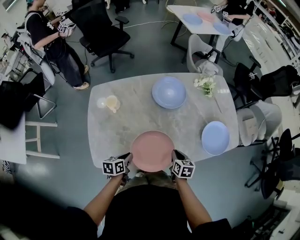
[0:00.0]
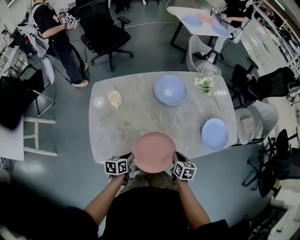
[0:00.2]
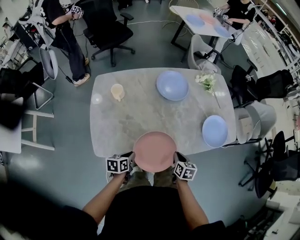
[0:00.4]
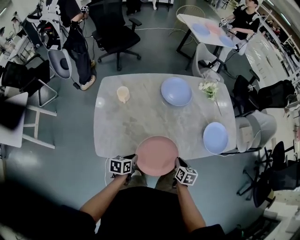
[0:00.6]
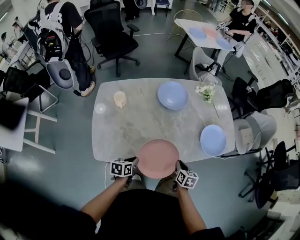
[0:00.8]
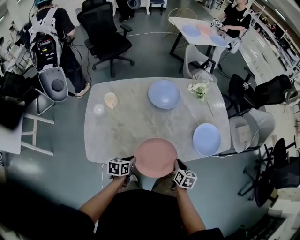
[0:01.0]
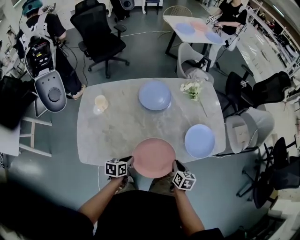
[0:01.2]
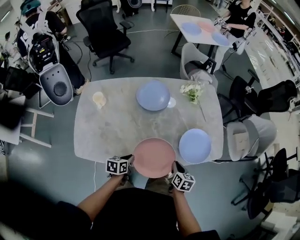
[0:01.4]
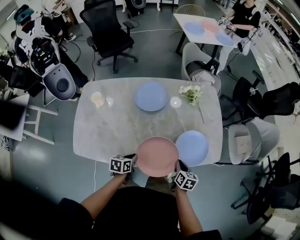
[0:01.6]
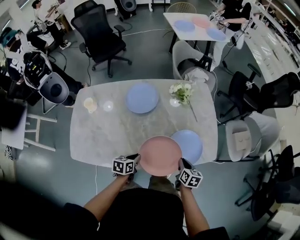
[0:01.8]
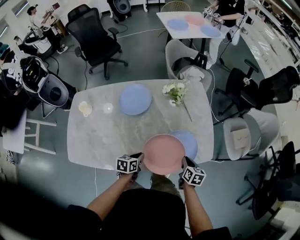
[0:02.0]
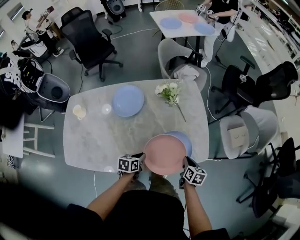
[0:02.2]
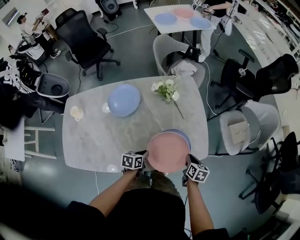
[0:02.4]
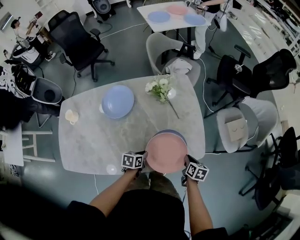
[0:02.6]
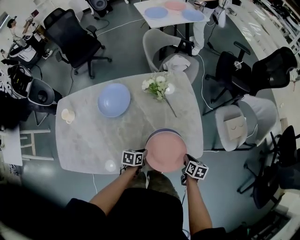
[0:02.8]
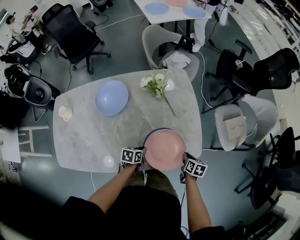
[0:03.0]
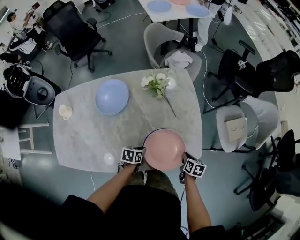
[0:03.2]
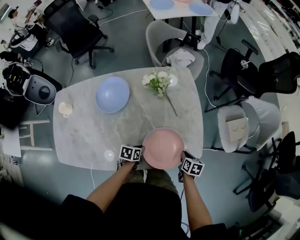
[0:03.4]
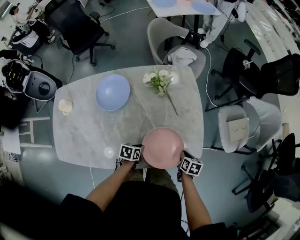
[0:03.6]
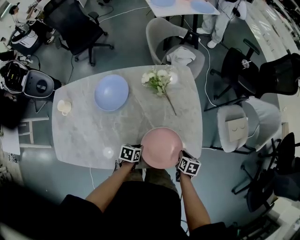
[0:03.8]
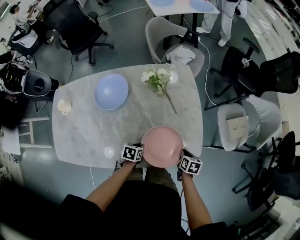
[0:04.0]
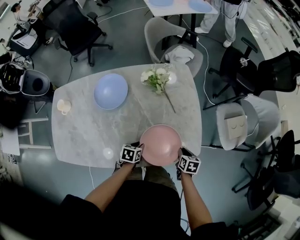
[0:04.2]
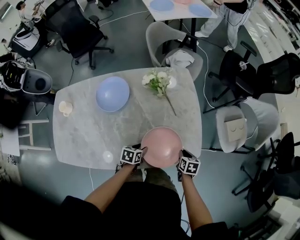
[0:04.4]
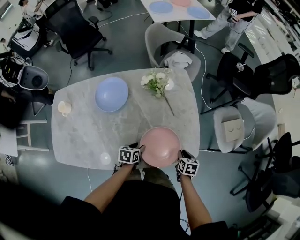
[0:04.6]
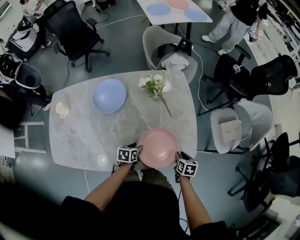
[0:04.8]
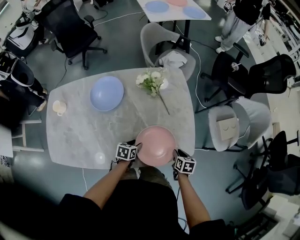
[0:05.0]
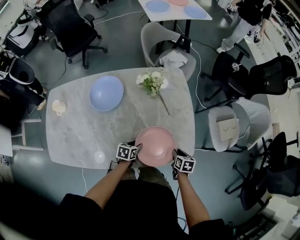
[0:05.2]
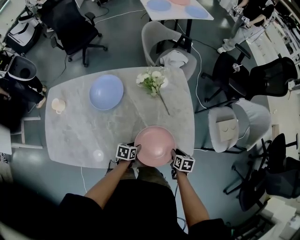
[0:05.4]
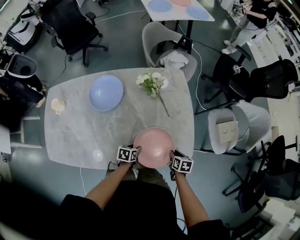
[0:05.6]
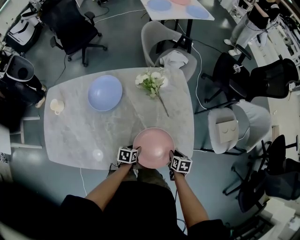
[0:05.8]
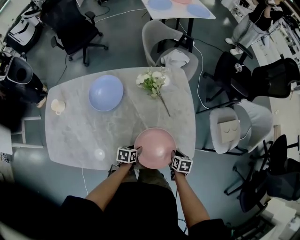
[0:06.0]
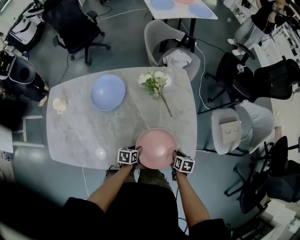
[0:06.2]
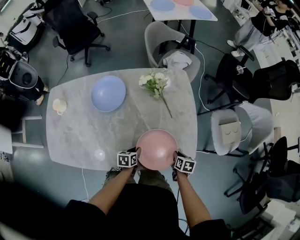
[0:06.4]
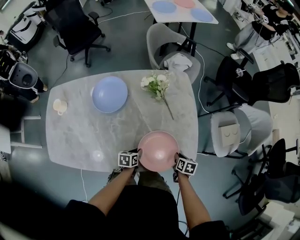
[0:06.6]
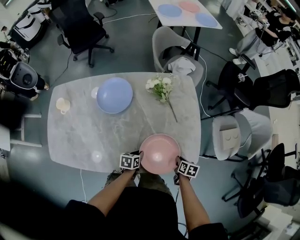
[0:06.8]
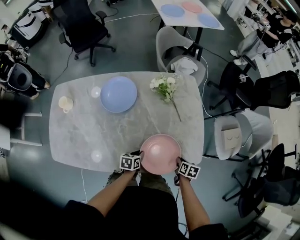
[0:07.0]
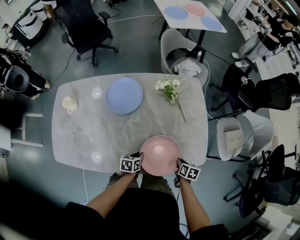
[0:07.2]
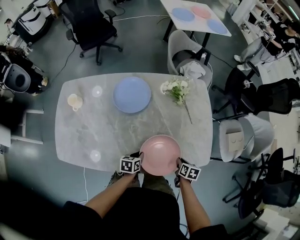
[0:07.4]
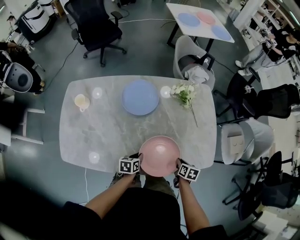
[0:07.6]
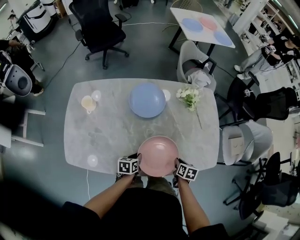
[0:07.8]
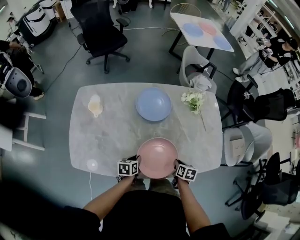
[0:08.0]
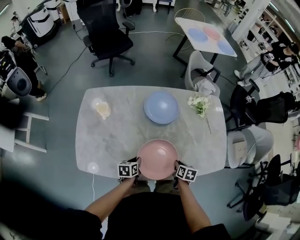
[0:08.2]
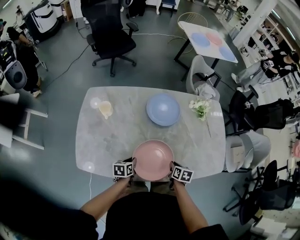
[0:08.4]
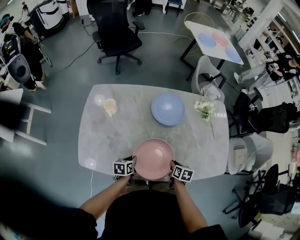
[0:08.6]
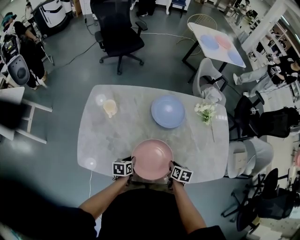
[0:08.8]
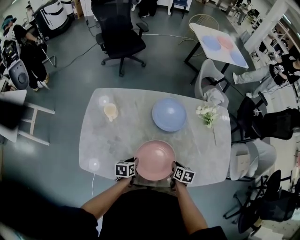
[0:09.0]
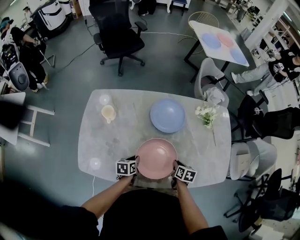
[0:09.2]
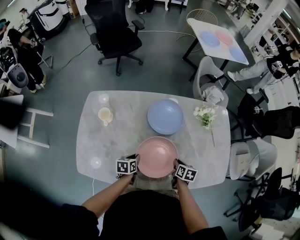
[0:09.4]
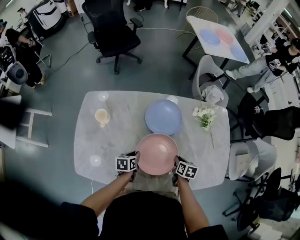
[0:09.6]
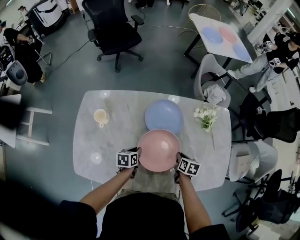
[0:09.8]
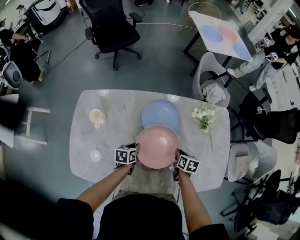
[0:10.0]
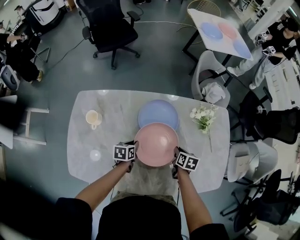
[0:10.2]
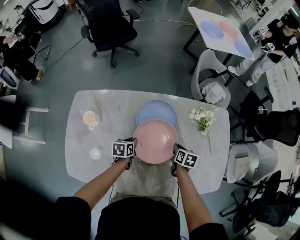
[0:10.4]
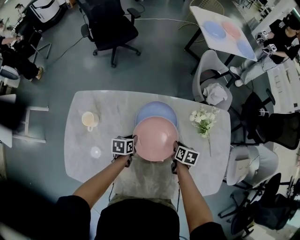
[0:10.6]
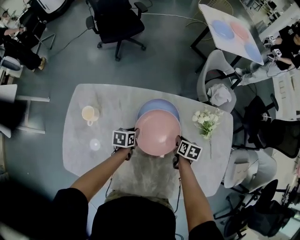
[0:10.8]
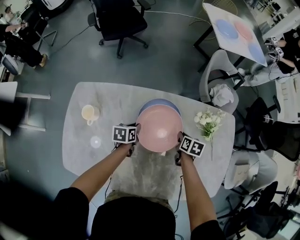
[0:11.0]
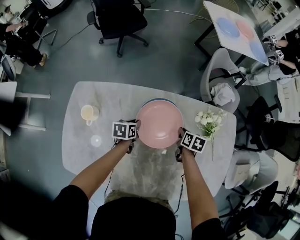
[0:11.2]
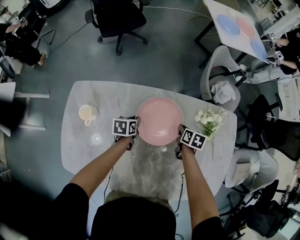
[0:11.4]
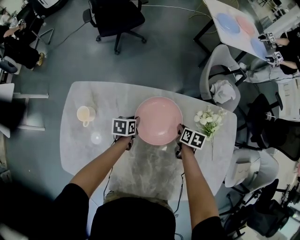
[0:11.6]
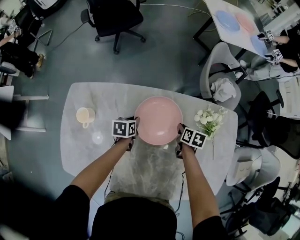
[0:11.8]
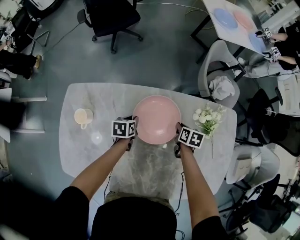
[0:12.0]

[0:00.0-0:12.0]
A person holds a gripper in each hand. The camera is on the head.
0:00.0 to 0:01.6: Both grippers move to the right, about 25 cm.
0:01.6 to 0:03.0: The right gripper travels to the right, forward and downward by approximately 25 cm, while the left gripper moves to the right and forward, approximately 30 cm.
0:03.0 to 0:04.4: The left gripper opens its fingers.
0:04.4 to 0:06.0: The grippers move only a little.
0:06.0 to 0:07.6: The grippers both shift to the left by some 15 cm.
0:07.6 to 0:09.0: Both grippers move to the left, about 20 cm.
0:09.0 to 0:10.4: The two grippers go approximately 20 cm forward.
0:10.4 to 0:12.0: The grippers both shift forward by some 15 cm.

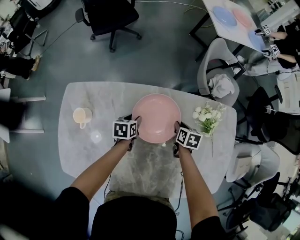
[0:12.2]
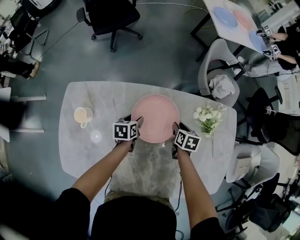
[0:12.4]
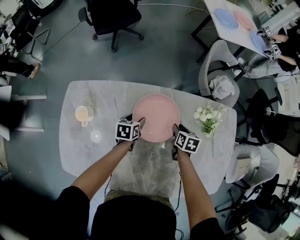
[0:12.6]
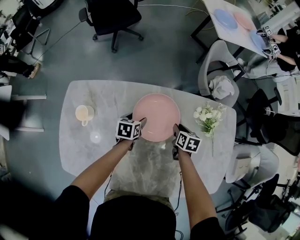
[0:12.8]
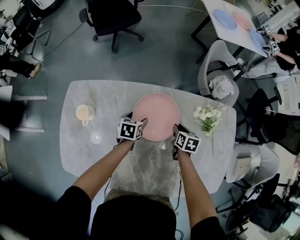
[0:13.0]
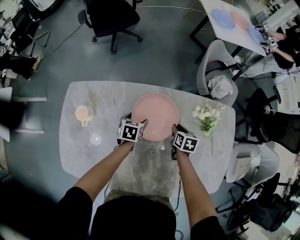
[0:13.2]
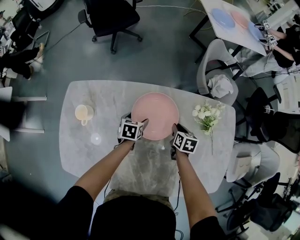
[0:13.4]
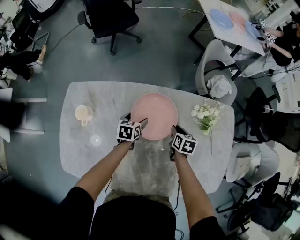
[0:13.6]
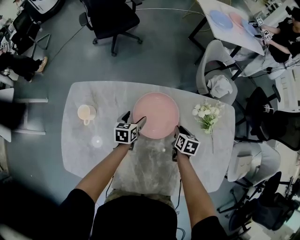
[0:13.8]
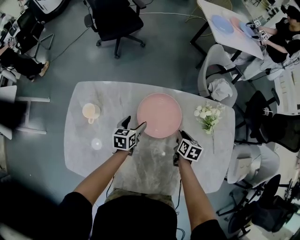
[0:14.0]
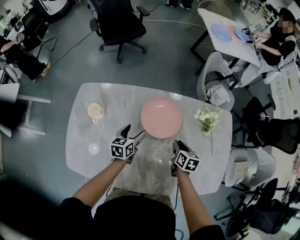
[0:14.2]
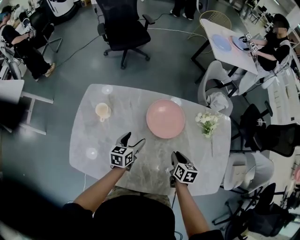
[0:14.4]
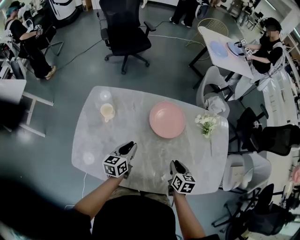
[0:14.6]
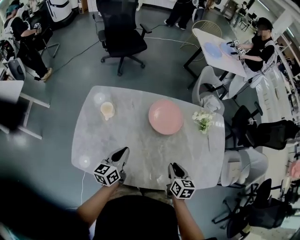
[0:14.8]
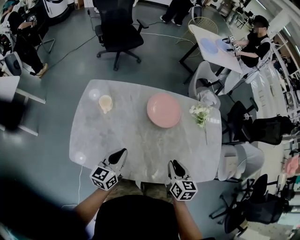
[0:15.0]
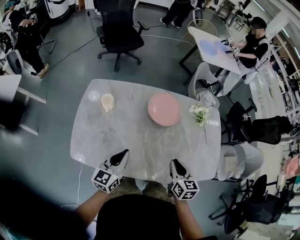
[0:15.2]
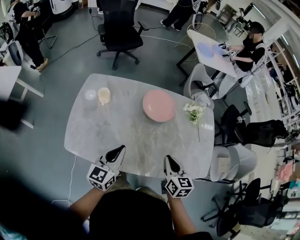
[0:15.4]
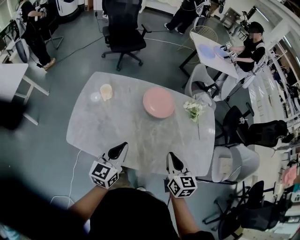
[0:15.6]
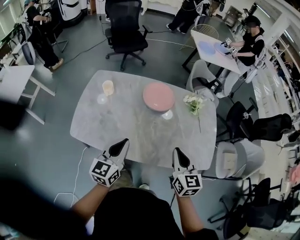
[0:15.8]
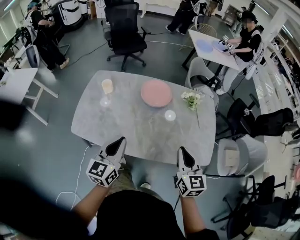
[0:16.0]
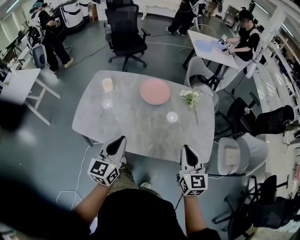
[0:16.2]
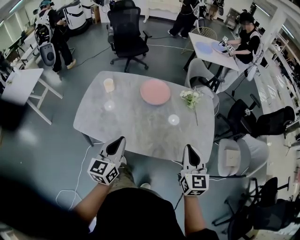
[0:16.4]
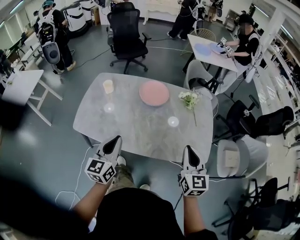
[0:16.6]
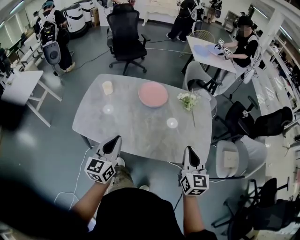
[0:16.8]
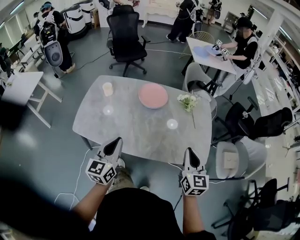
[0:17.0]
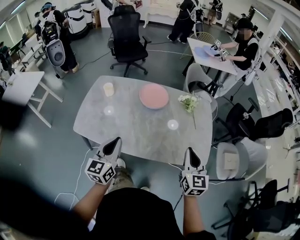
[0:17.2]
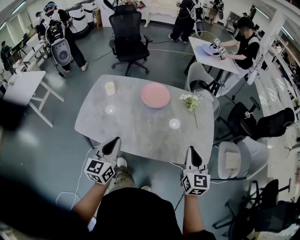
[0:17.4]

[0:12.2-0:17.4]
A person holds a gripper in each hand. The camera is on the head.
0:12.2 to 0:14.0: The two grippers go about 5 cm backward. The left gripper opens its fingers.
0:14.0 to 0:15.6: The grippers both shift backward and upward by approximately 40 cm. The right gripper swivels some 30 degrees, while the left gripper changes its angle by some 30 degrees, and closes up.
0:15.6 to 0:17.4: The left gripper shifts about 15 cm backward, to the right and upward, while the right gripper goes roughly 25 cm to the right, backward and upward.

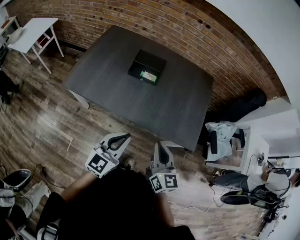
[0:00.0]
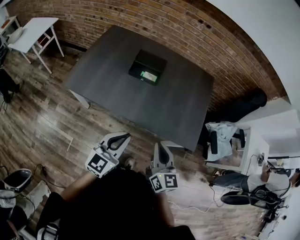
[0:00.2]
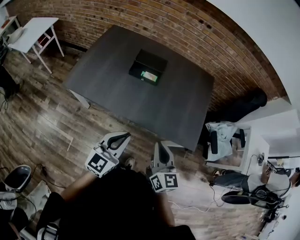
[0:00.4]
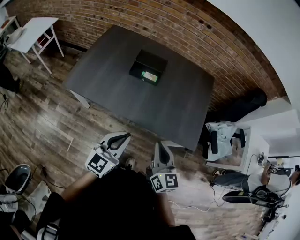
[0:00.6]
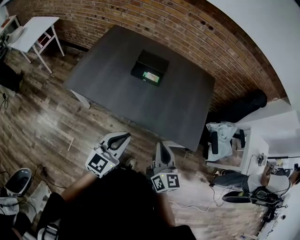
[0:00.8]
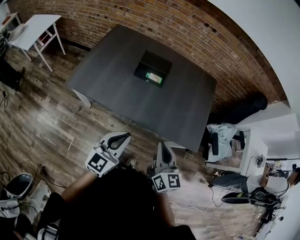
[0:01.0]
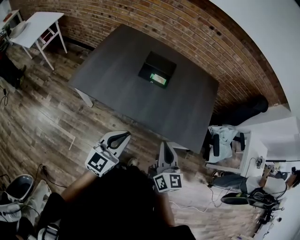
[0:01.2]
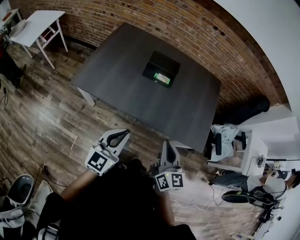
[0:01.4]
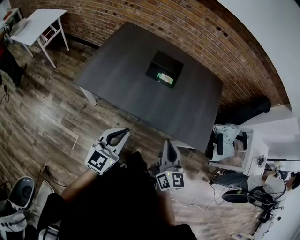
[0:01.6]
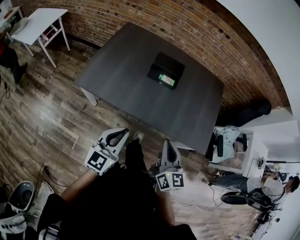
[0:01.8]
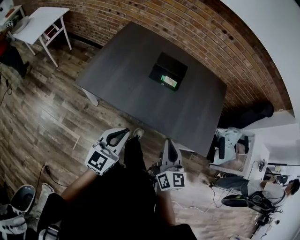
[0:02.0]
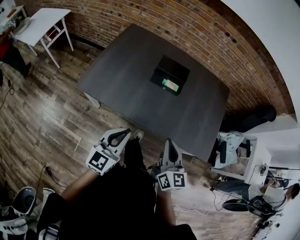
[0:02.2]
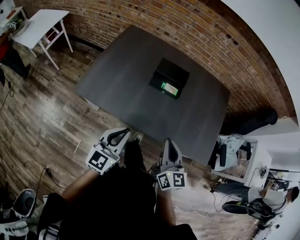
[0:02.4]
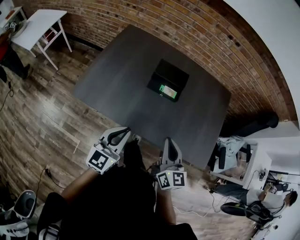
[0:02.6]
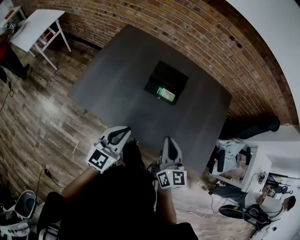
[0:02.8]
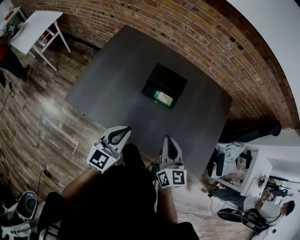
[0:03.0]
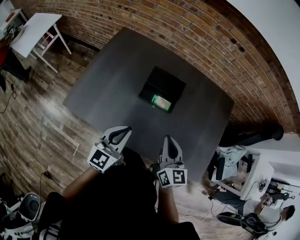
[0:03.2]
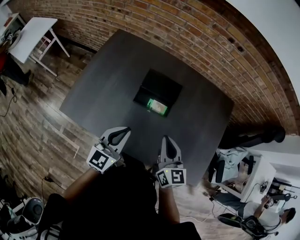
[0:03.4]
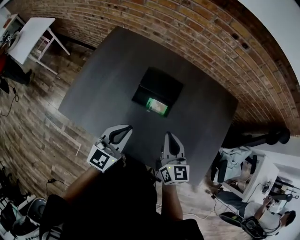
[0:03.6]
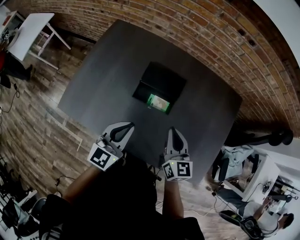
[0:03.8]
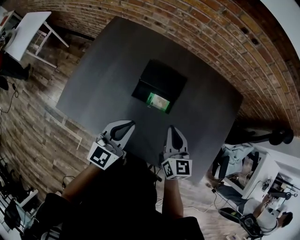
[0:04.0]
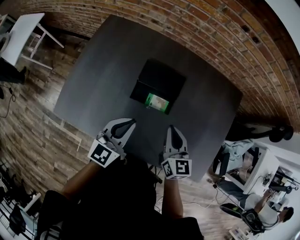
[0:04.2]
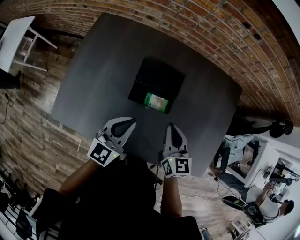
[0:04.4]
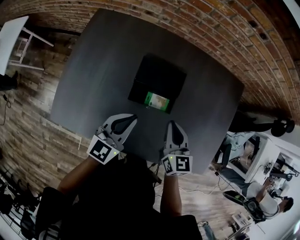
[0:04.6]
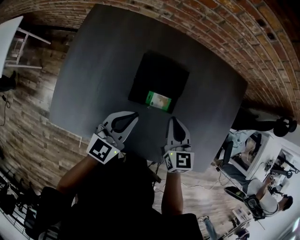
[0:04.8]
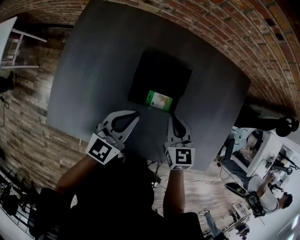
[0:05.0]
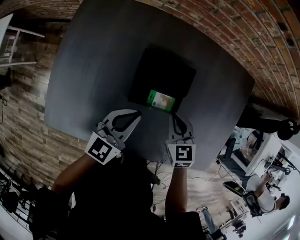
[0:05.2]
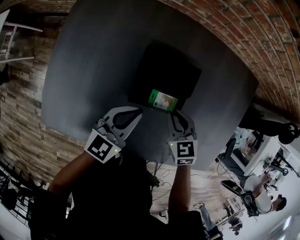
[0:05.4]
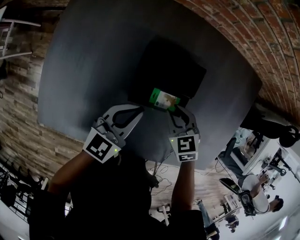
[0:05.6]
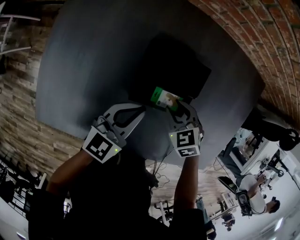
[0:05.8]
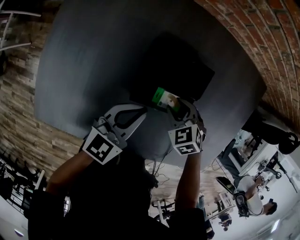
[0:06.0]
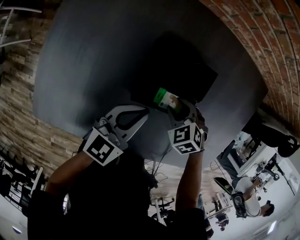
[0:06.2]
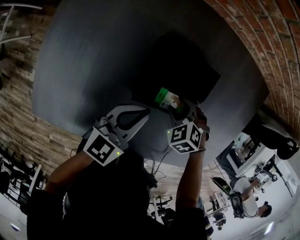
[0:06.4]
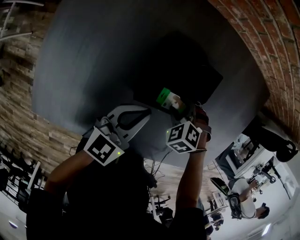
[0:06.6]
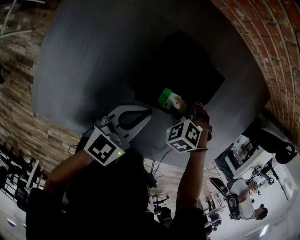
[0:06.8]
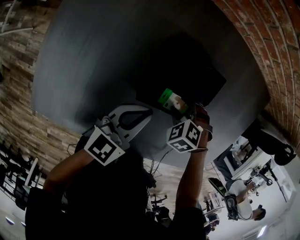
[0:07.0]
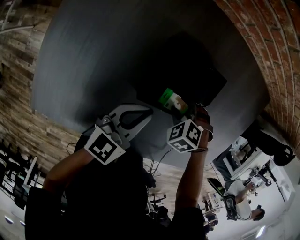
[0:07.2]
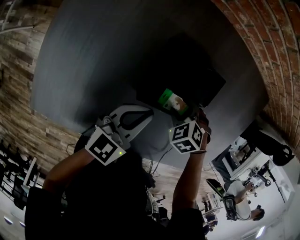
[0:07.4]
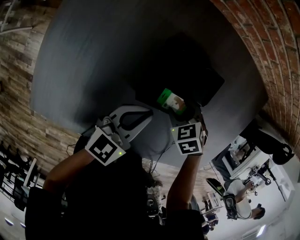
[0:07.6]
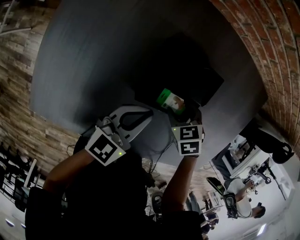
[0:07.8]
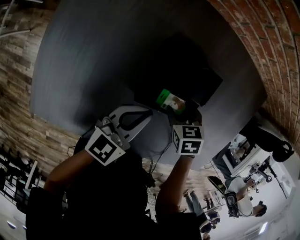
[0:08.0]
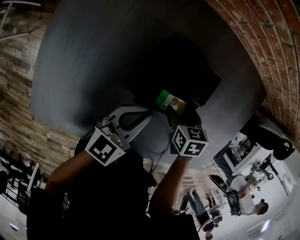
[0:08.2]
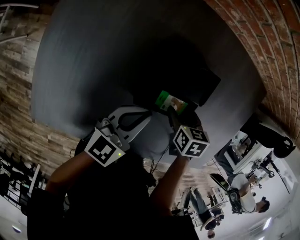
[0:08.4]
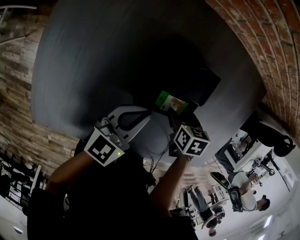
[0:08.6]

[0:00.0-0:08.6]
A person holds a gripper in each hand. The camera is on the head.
0:00.0 to 0:01.4: The two grippers go about 10 cm to the left.
0:01.4 to 0:02.8: Both grippers move forward, some 20 cm.
0:02.8 to 0:04.4: The grippers both shift forward by about 25 cm.
0:04.4 to 0:05.8: Both grippers move downward and forward, approximately 20 cm. The right gripper points its fingers some 40 degrees further downward.
0:05.8 to 0:07.2: The right gripper is displaced downward by roughly 5 cm, and rotates approximately 40 degrees.
0:07.2 to 0:08.6: The right gripper rolls clockwise, seen from behind, by some 70 degrees.
